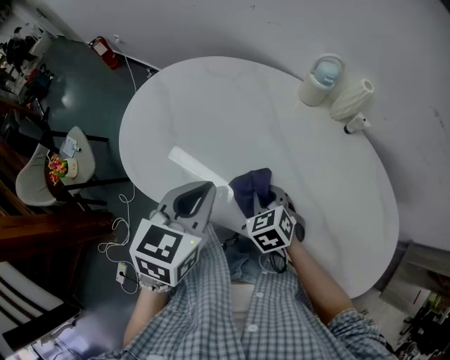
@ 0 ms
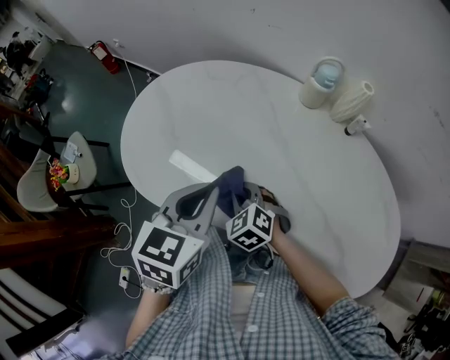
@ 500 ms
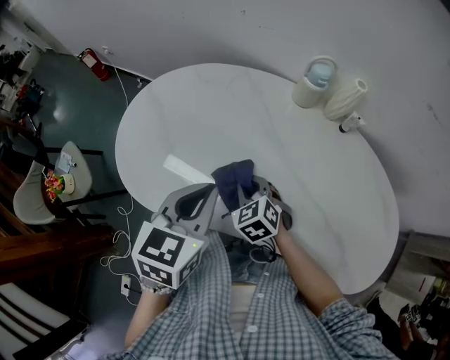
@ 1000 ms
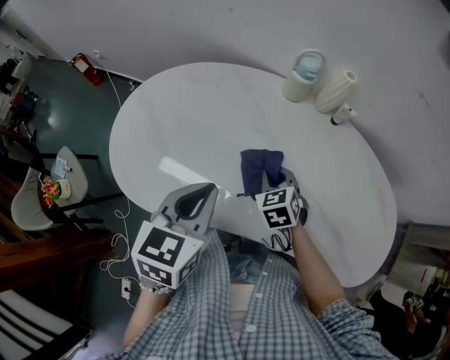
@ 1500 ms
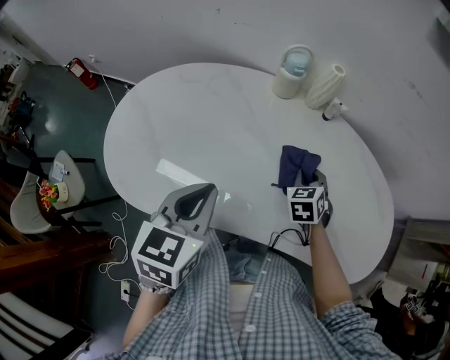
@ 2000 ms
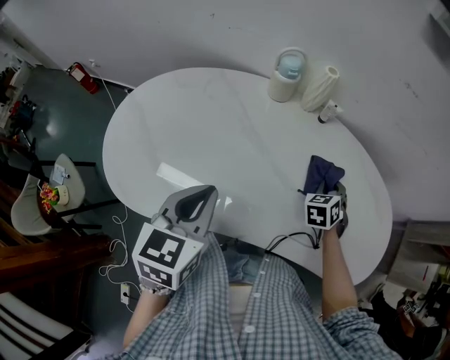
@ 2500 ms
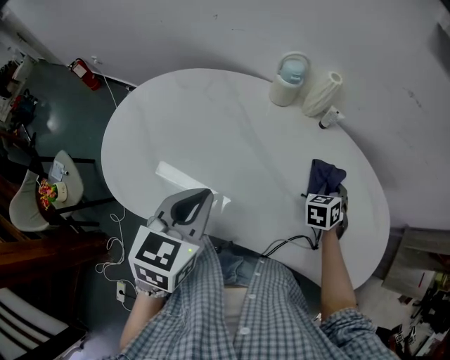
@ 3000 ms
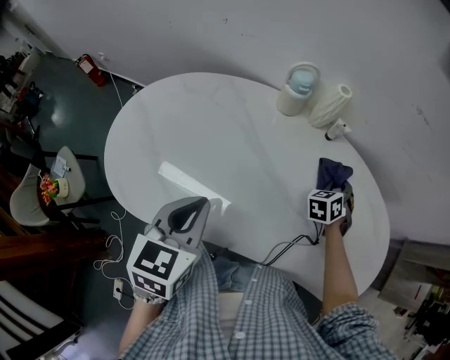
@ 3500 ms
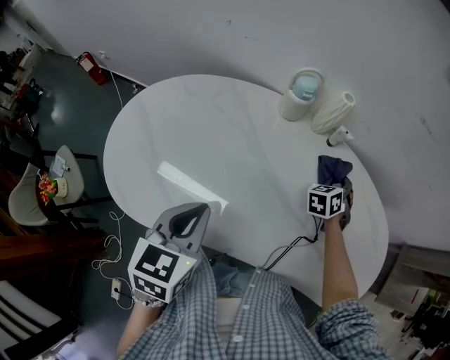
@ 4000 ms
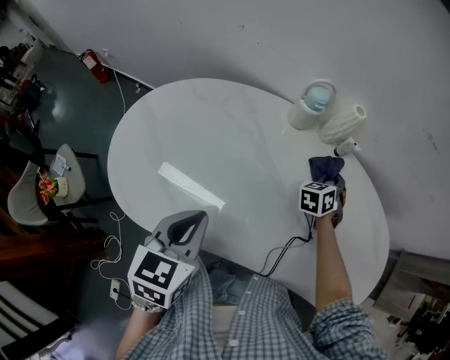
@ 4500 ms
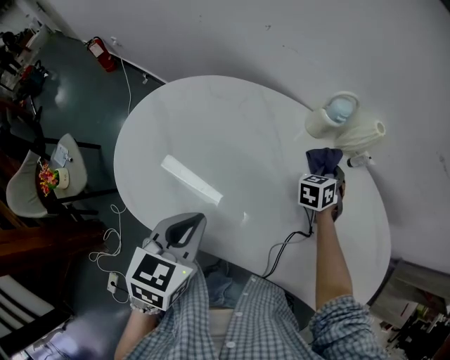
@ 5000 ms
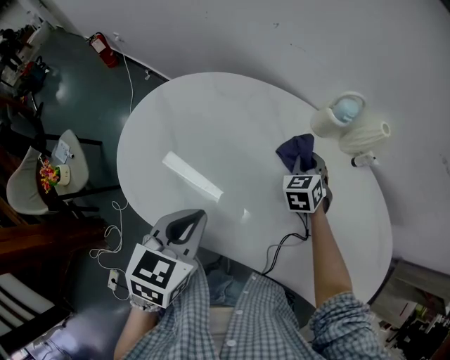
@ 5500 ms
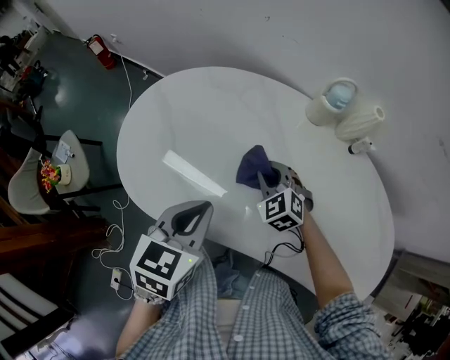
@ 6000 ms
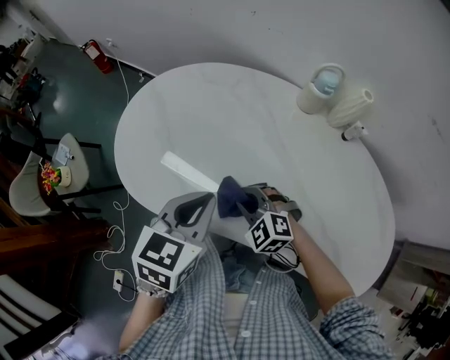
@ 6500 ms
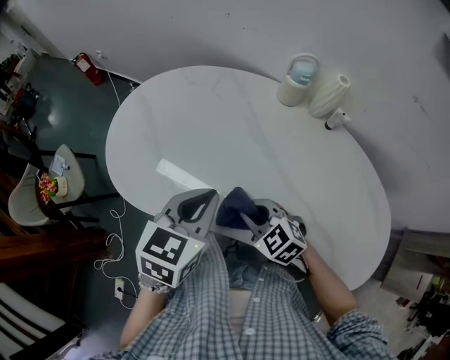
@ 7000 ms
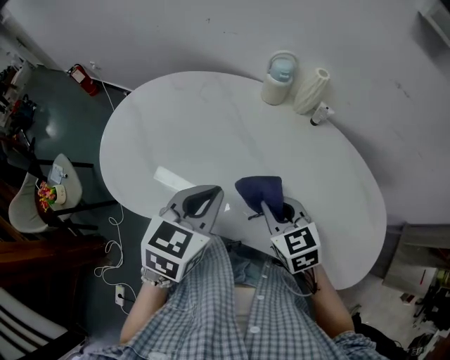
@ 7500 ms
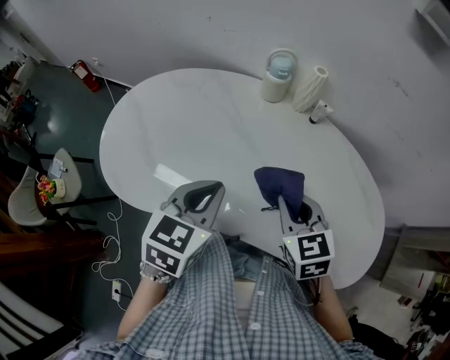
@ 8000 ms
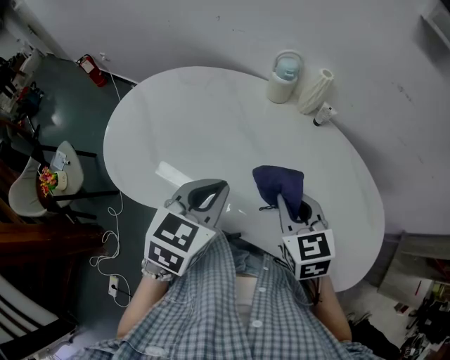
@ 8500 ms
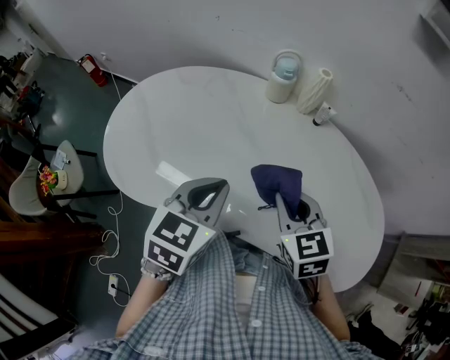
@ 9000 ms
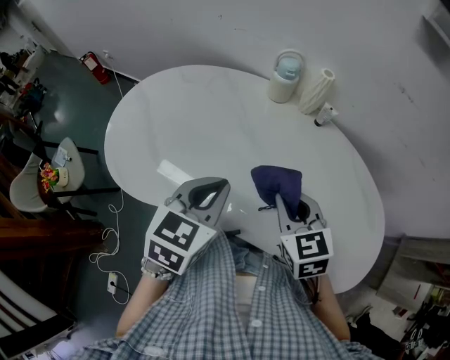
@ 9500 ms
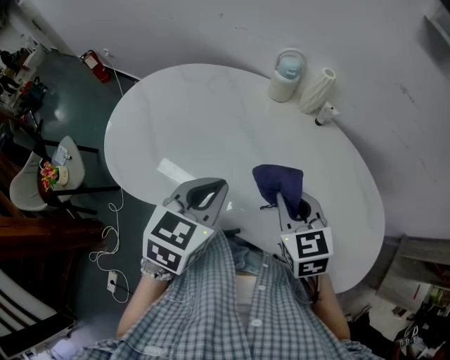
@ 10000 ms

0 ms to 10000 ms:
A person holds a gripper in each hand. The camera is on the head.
0 ms to 2000 ms: The right gripper ends up roughly 20 cm from where it was, and turns by about 30 degrees.
2000 ms to 4000 ms: The right gripper shifts approximately 15 cm forward and to the right, and changes its angle by roughly 20 degrees.
4000 ms to 6000 ms: The right gripper ends up about 35 cm from where it was, and turns by roughly 60 degrees. The left gripper shifts by about 5 cm.
6000 ms to 8000 ms: The right gripper moves to the right, backward and upward, some 25 cm, and changes its angle by some 40 degrees. Meanwhile the left gripper goes roughly 15 cm to the right.
8000 ms to 10000 ms: Both grippers stay about where they are.

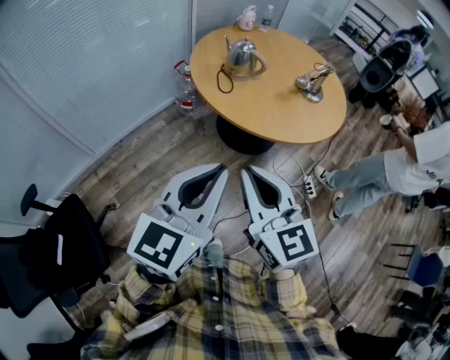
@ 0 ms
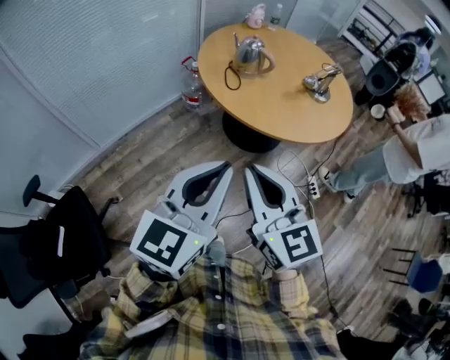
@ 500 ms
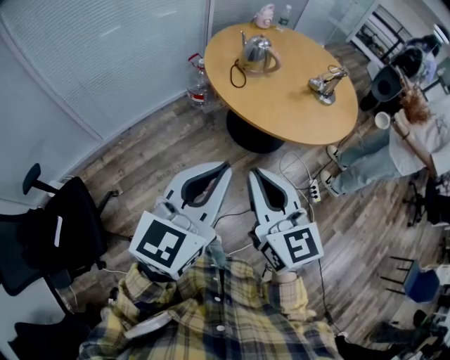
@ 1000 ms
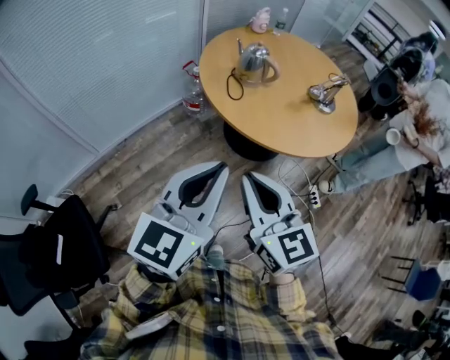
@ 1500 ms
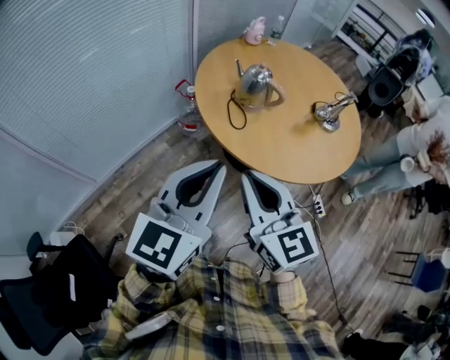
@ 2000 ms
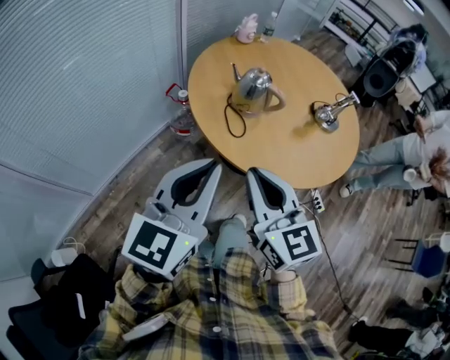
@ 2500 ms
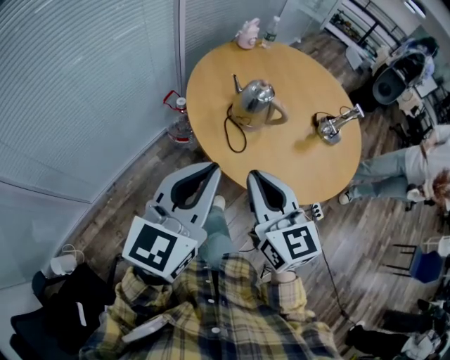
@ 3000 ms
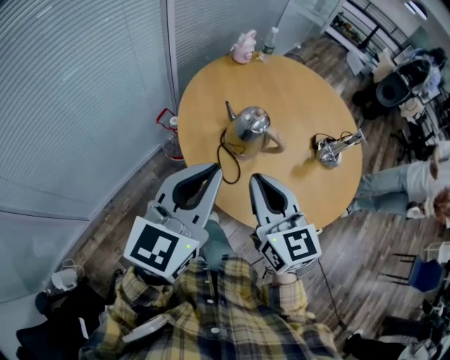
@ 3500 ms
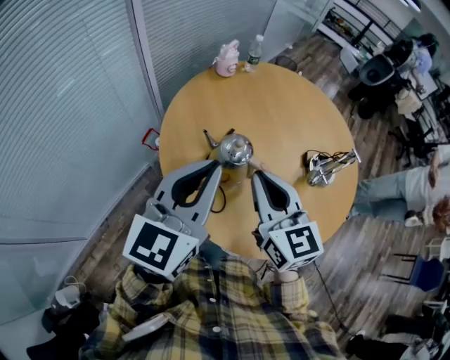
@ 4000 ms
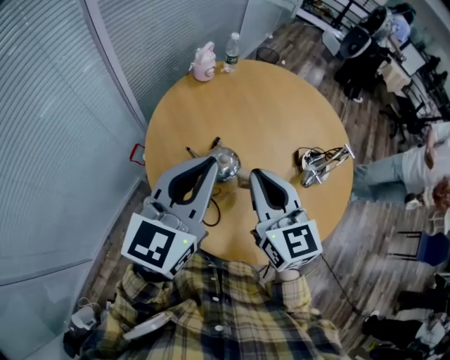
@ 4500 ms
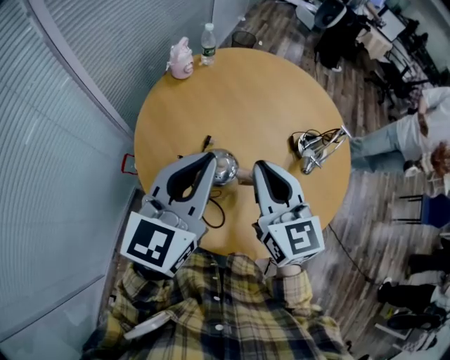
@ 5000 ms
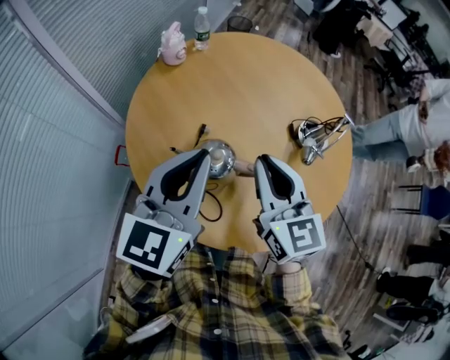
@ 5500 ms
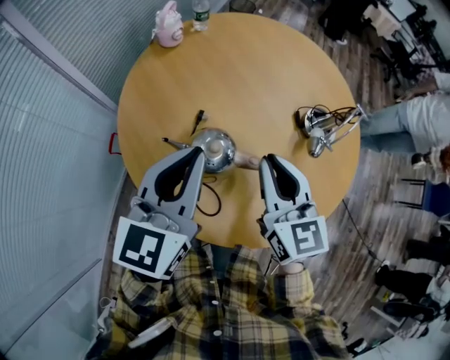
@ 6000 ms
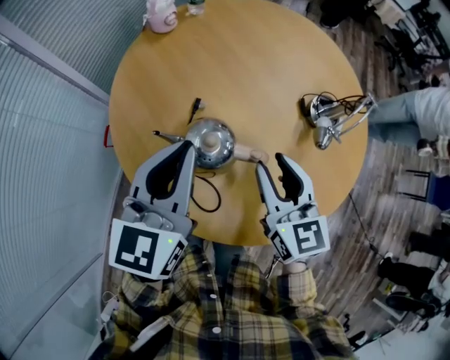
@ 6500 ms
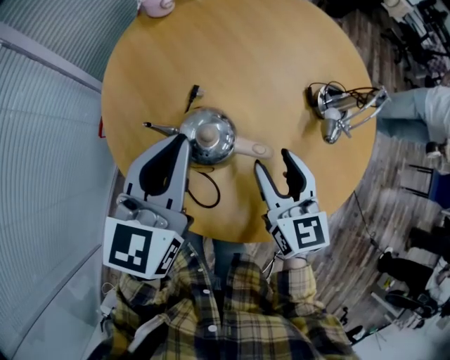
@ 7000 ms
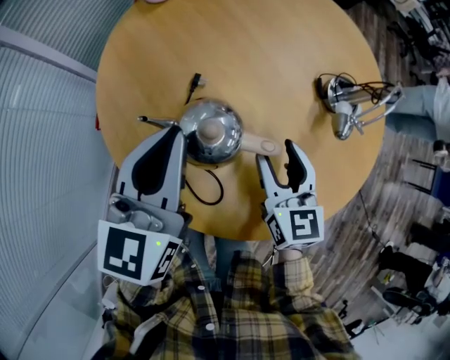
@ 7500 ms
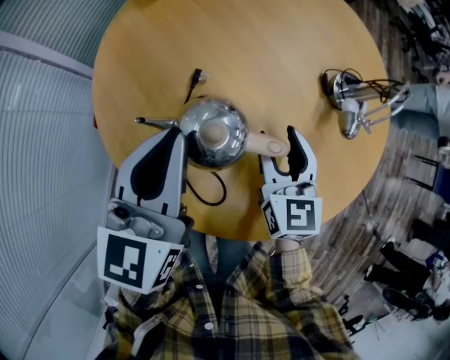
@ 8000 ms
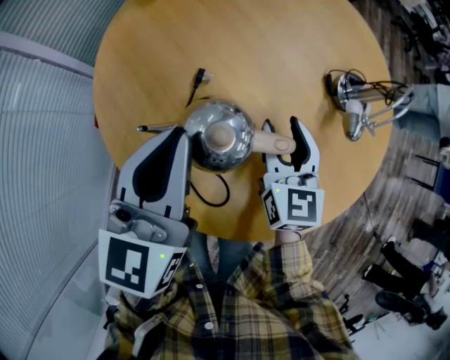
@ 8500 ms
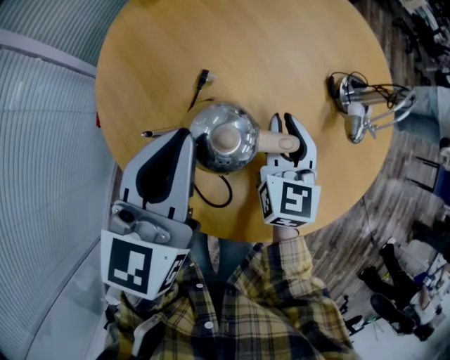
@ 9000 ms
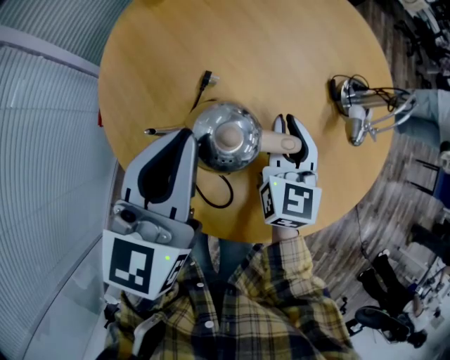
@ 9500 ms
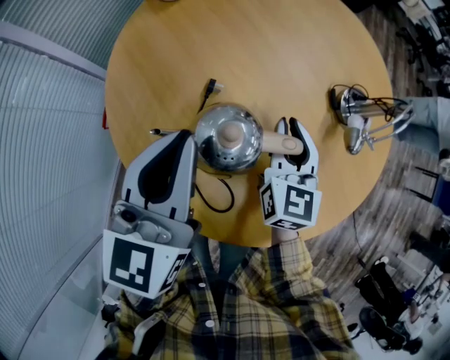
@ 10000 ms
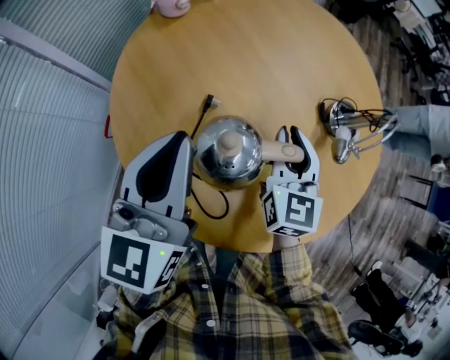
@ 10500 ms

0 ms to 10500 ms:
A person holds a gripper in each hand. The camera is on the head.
0 ms to 2000 ms: Both grippers move forward, roughly 20 cm.
2000 ms to 4000 ms: The grippers both shift forward by approximately 35 cm.
4000 ms to 6500 ms: The right gripper moves downward, forward and to the right, roughly 15 cm, swivels approximately 20 degrees, and opens up. Meanwhile the left gripper moves forward and downward, roughly 15 cm.
6500 ms to 8500 ms: The right gripper shifts approximately 10 cm downward and forward. Meanwhile the left gripper ends up about 5 cm from where it was.
8500 ms to 10500 ms: The grippers both shift upward by roughly 5 cm. The right gripper closes up.

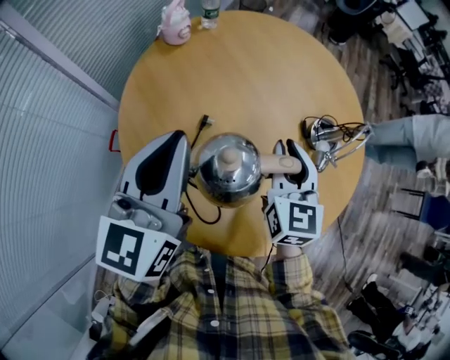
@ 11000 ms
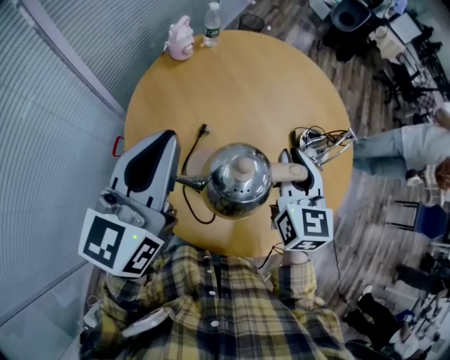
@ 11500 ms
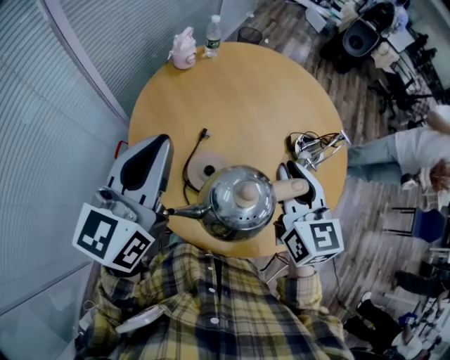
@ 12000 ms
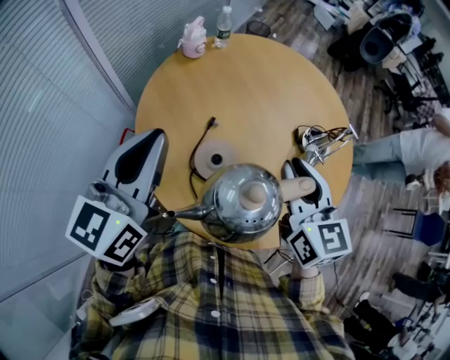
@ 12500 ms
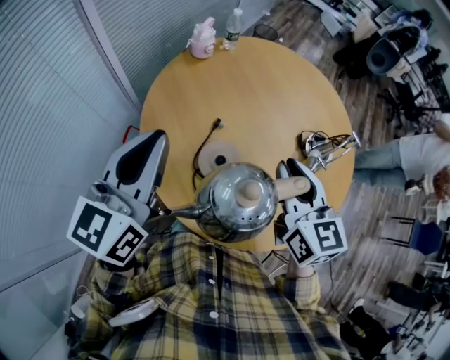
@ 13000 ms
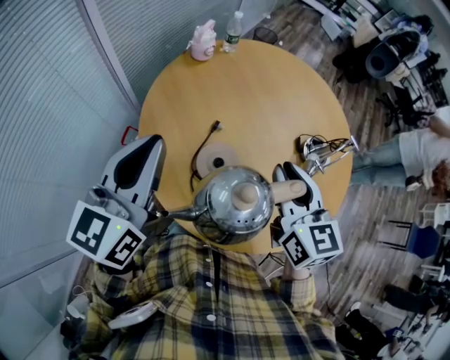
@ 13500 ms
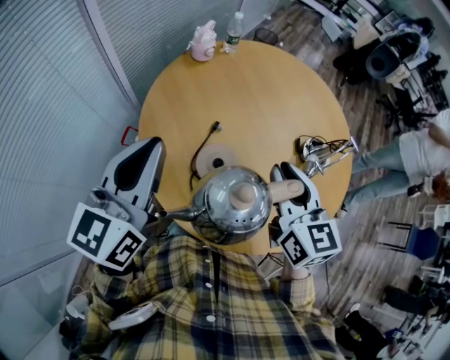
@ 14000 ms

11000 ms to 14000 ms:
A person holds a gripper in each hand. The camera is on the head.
11000 ms to 12500 ms: The right gripper is displaced upward and backward by some 15 cm. Meanwhile the left gripper is displaced backward by some 10 cm.
12500 ms to 14000 ms: The grippers make only small movements.

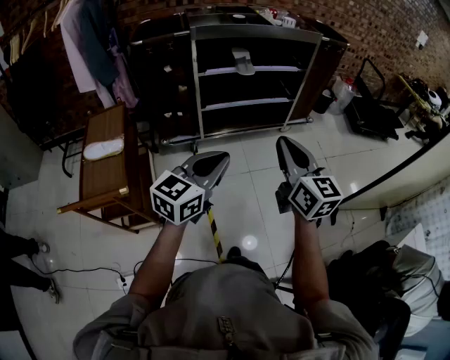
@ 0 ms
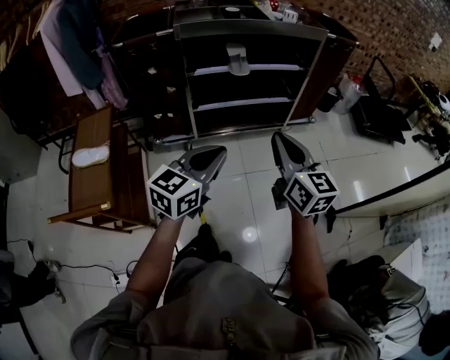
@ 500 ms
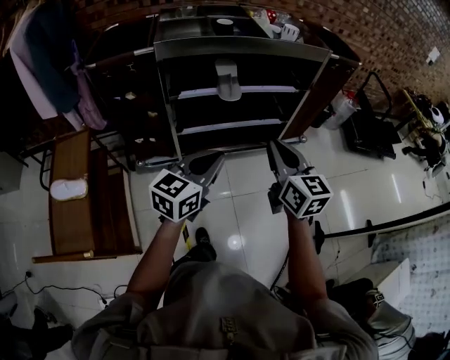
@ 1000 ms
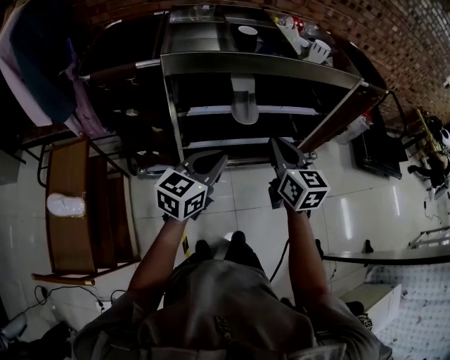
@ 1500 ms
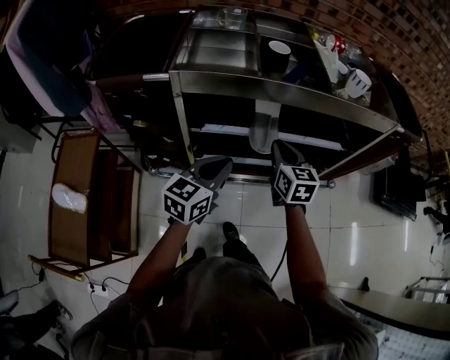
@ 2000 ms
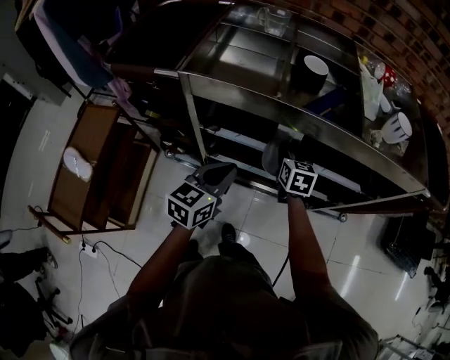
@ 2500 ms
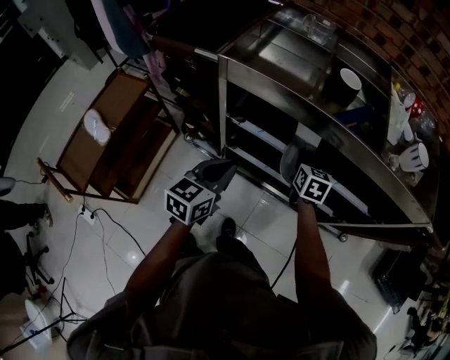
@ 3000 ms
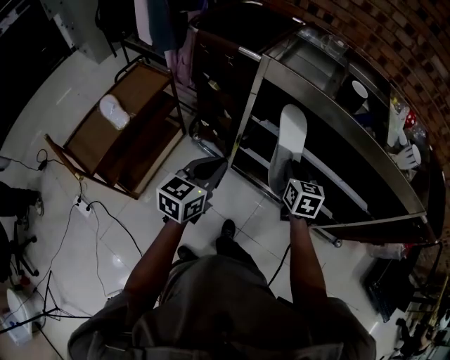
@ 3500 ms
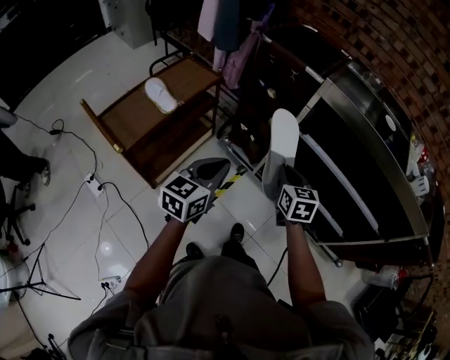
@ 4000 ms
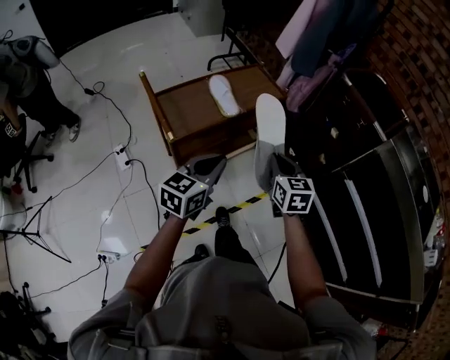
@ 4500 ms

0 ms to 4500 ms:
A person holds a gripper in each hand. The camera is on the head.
0 ms to 2000 ms: The two grippers travel together, forward, roughly 60 cm. The right gripper turns by some 20 degrees.
2000 ms to 4500 ms: The two grippers travel together, approximately 50 cm. The right gripper rotates roughly 60 degrees, and opens, then closes again. The left gripper turns by roughly 60 degrees.
